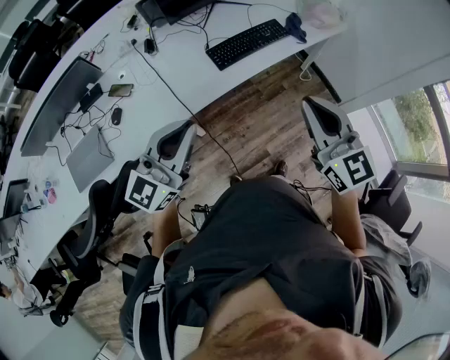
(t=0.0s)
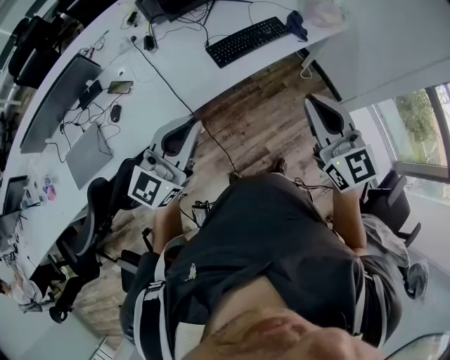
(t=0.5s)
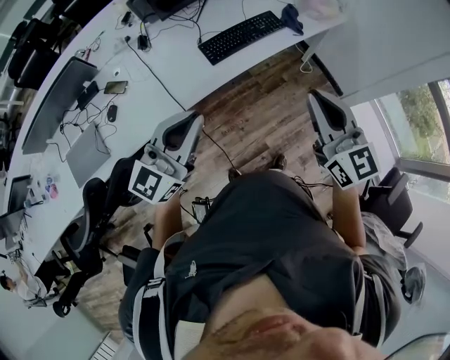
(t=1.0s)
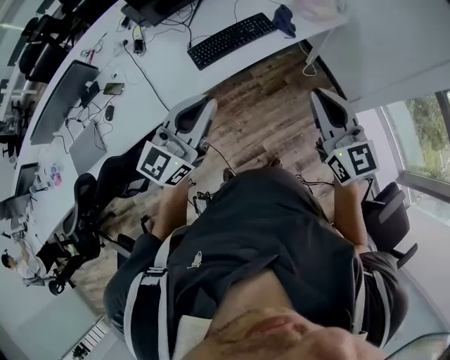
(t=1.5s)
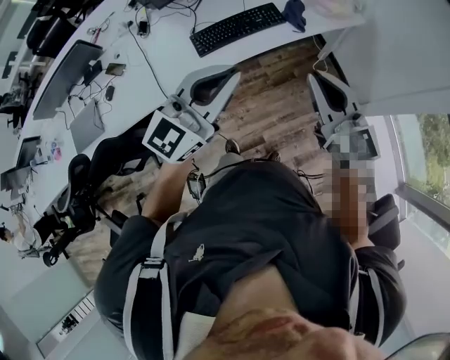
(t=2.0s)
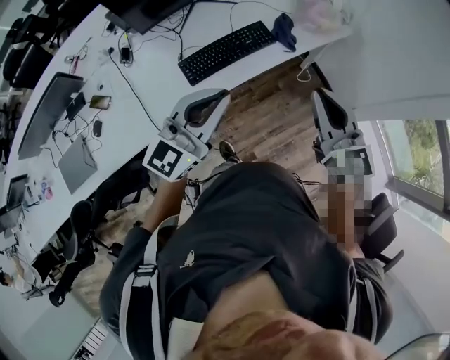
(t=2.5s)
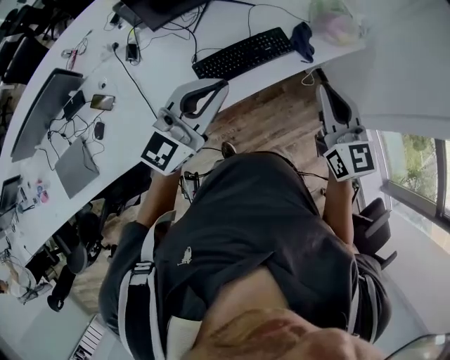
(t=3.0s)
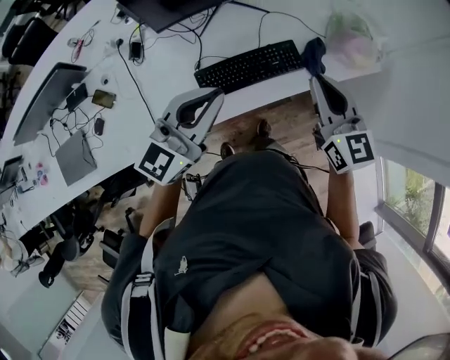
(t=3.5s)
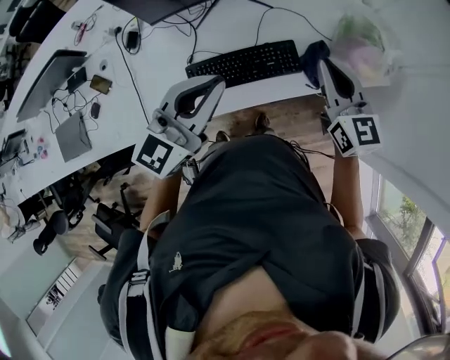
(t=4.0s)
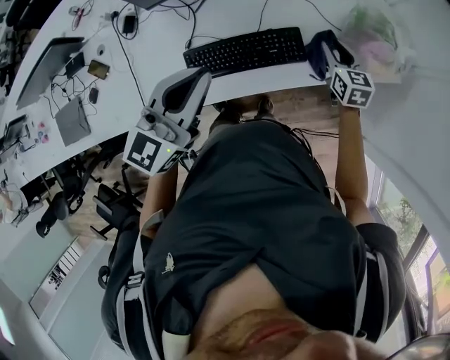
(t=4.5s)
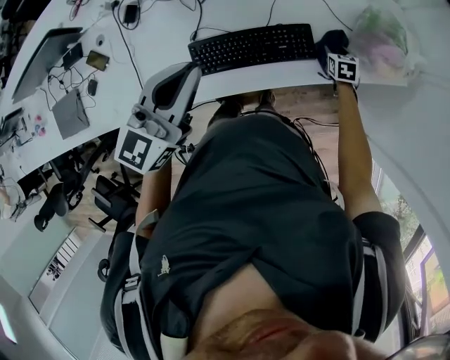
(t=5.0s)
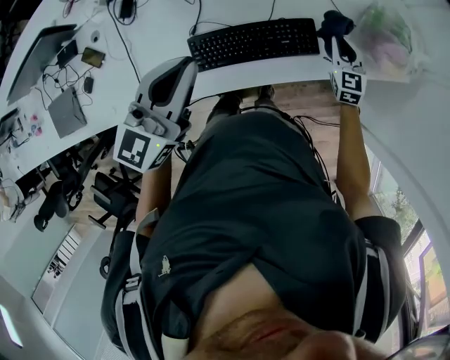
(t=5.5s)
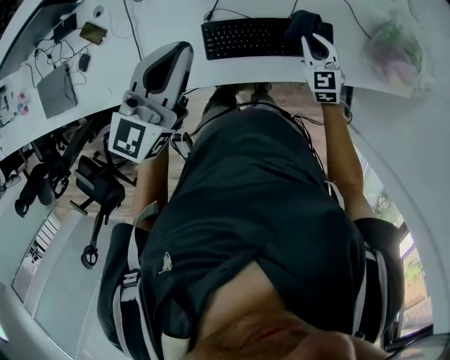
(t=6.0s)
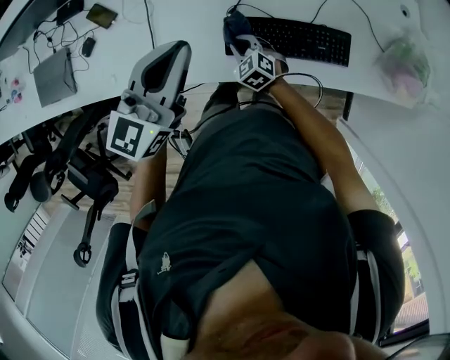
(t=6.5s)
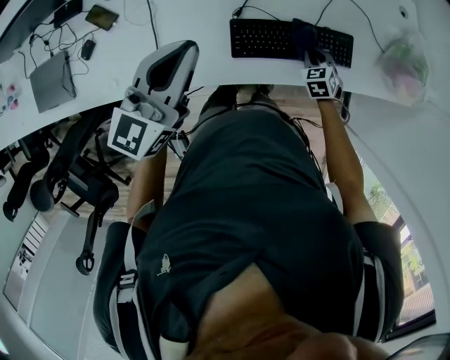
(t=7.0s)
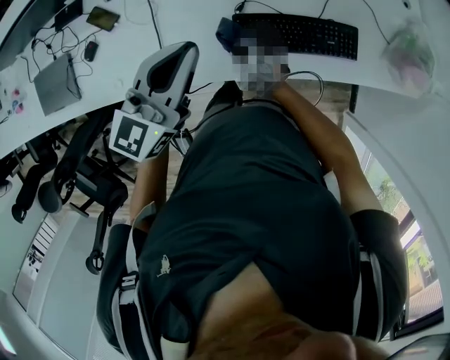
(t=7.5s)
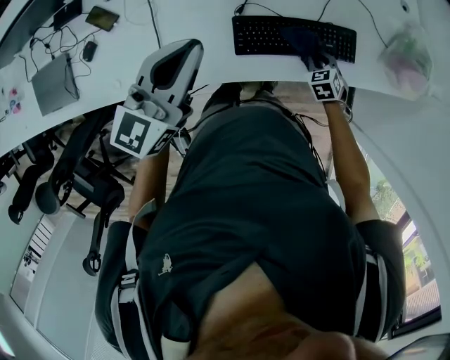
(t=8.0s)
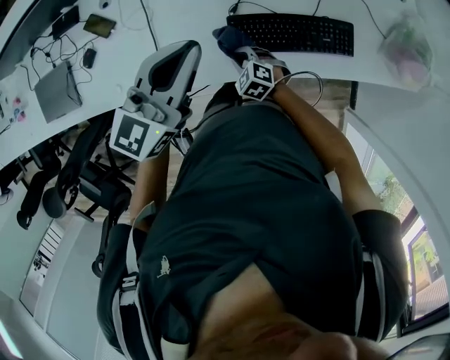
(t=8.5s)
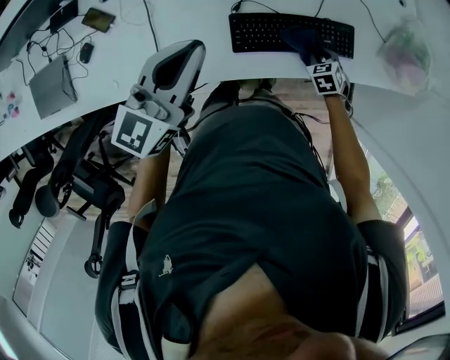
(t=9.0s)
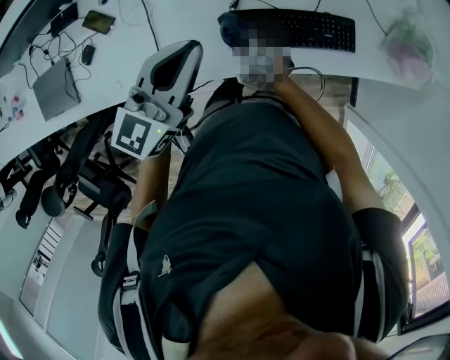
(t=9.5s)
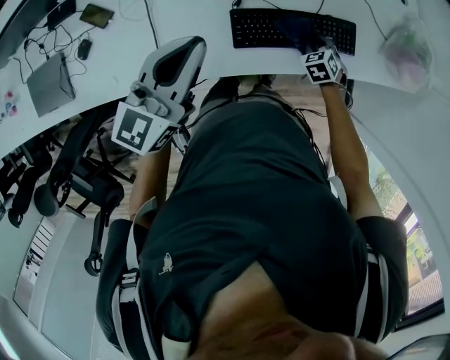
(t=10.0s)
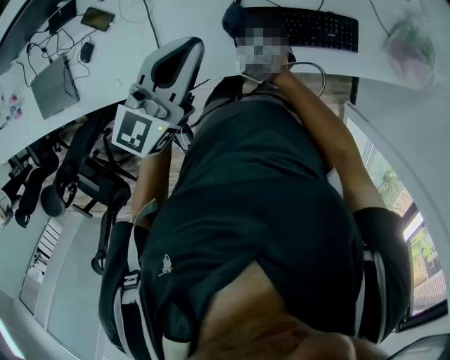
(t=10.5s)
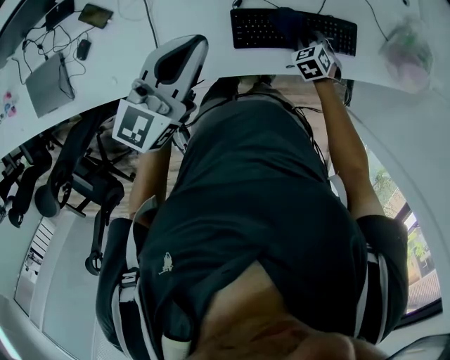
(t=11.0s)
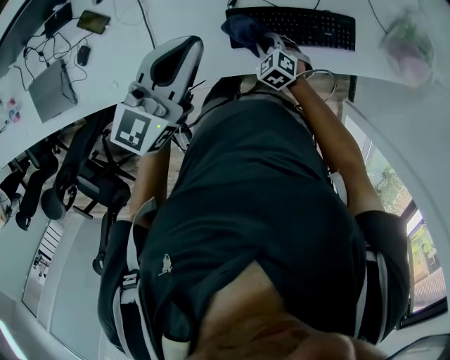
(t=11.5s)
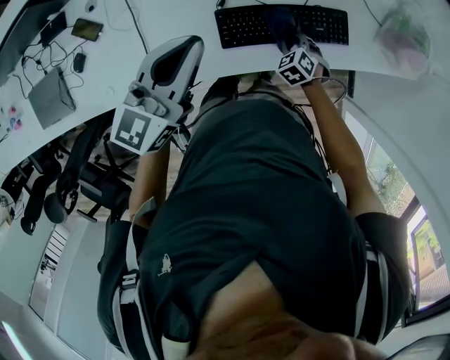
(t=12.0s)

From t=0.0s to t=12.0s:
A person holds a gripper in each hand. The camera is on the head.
From t=0.0s to t=2.0s: Both grippers move to the right and forward, some 30 cm.
From t=2.0s to t=4.0s: Both grippers move forward, some 35 cm.
From t=4.0s to t=6.0s: The right gripper shifts roughly 25 cm downward and to the left, swivels some 30 degrees, and opens and closes again, while the left gripper goes about 15 cm to the left.
From t=6.0s to t=8.0s: The left gripper shifts approximately 10 cm to the left, while the right gripper swings left and right, roughly 30 cm each way, with 3 reversals, and rotates approximately 30 degrees.
From t=10.0s to t=12.0s: The right gripper swings left and right, some 20 cm each way, with 3 reversals.

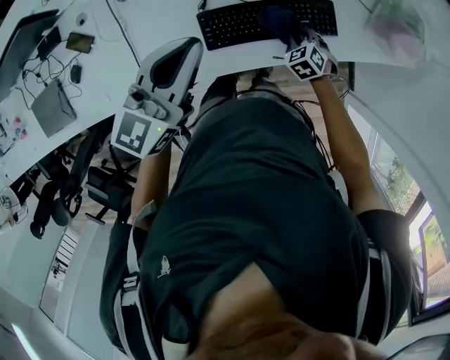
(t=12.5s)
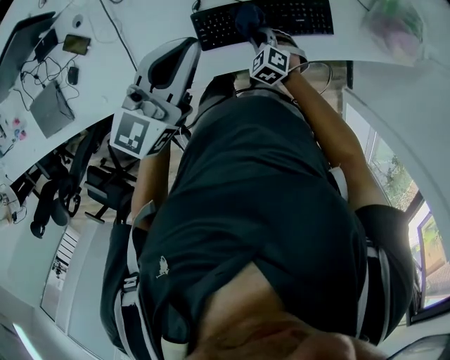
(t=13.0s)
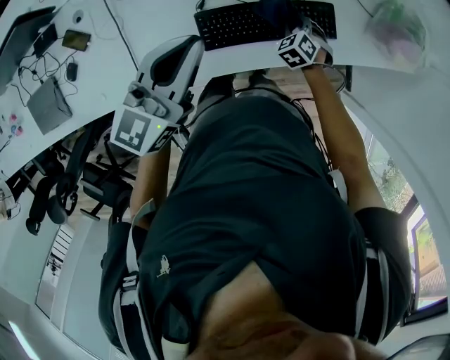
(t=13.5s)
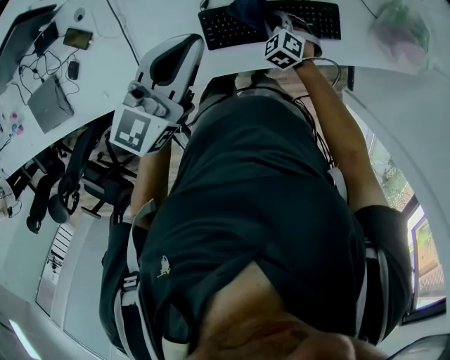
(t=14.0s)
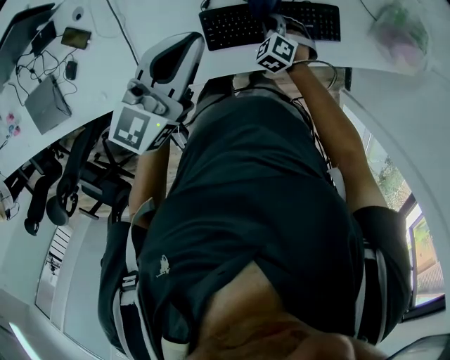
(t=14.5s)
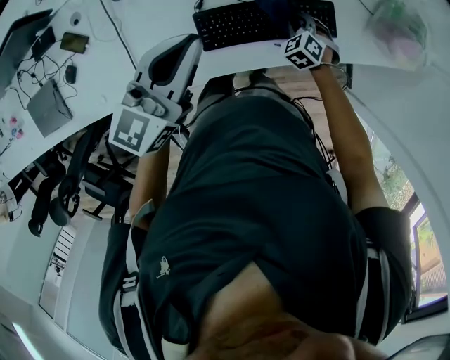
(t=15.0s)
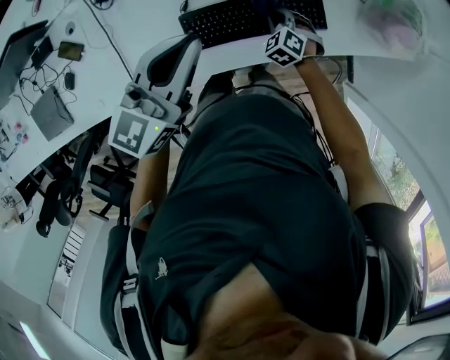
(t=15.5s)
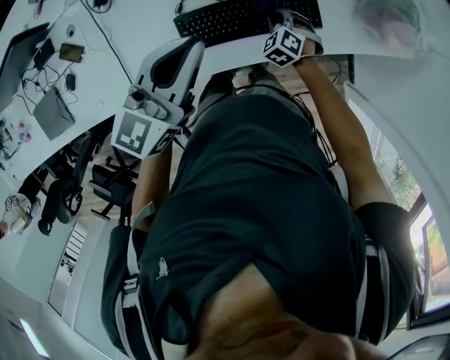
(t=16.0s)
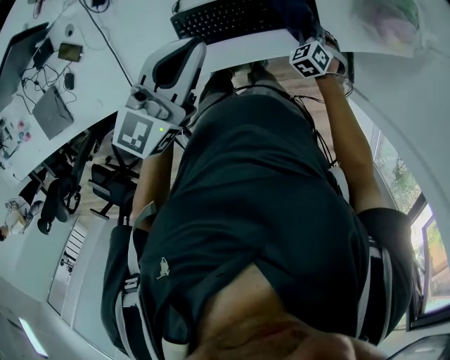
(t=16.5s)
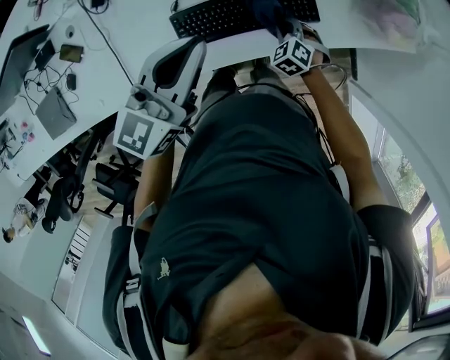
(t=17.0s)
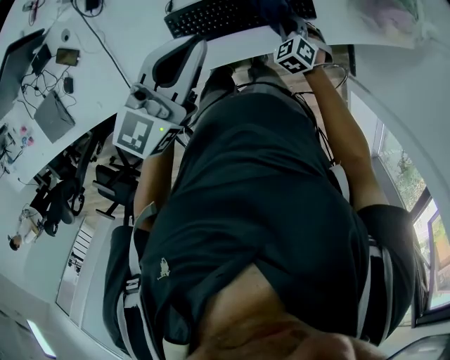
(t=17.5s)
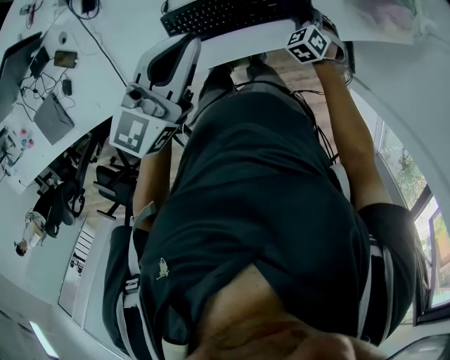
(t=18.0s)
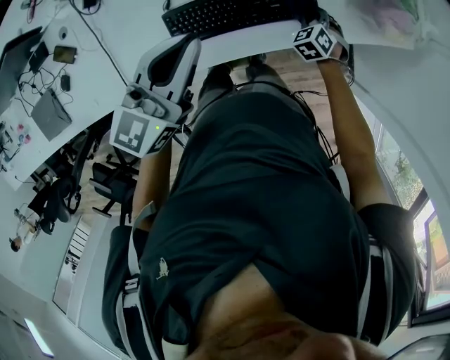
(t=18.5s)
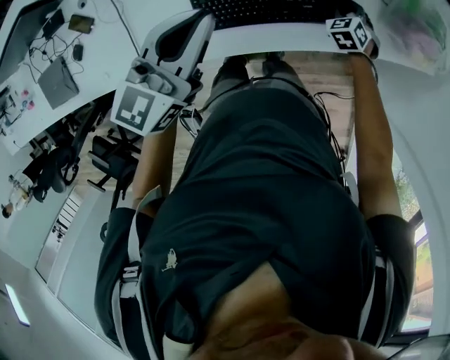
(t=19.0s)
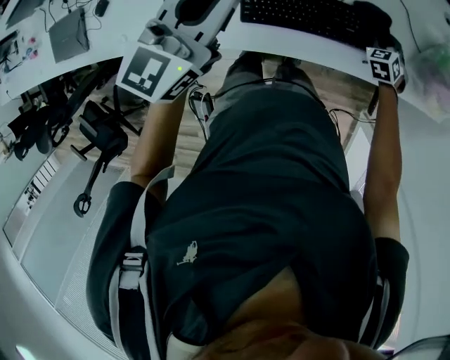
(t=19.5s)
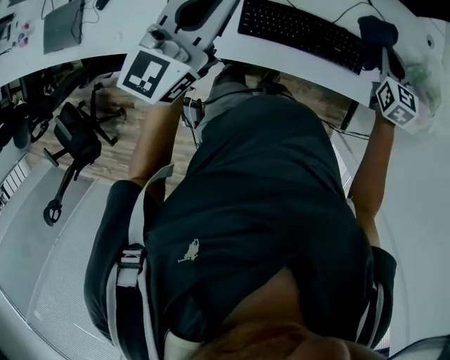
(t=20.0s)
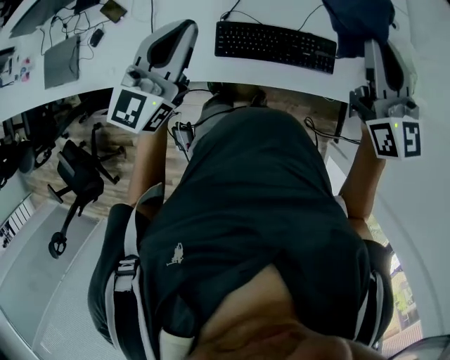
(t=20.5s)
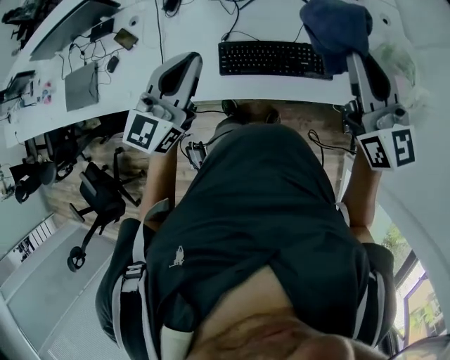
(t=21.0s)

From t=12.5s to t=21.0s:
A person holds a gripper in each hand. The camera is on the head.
From t=12.5s to t=14.5s: The right gripper swings left and right, about 10 cm each way, with 2 reversals.
From t=14.5s to t=16.5s: The right gripper heads to the right, covering about 20 cm. The left gripper travels to the right by approximately 10 cm.
From t=16.5s to t=19.0s: The right gripper heads forward, covering some 10 cm.
From t=19.0s to t=21.0s: The right gripper is displaced upward by some 50 cm, and points its fingers some 60 degrees further upward, while the left gripper changes place by approximately 15 cm.

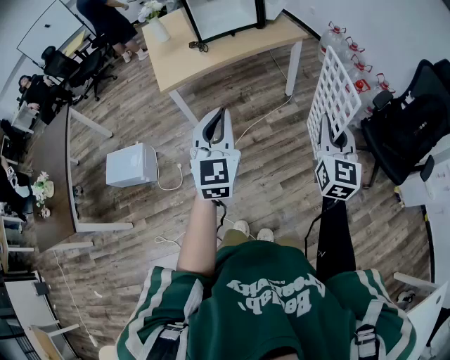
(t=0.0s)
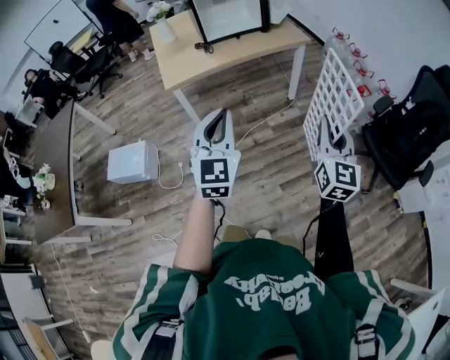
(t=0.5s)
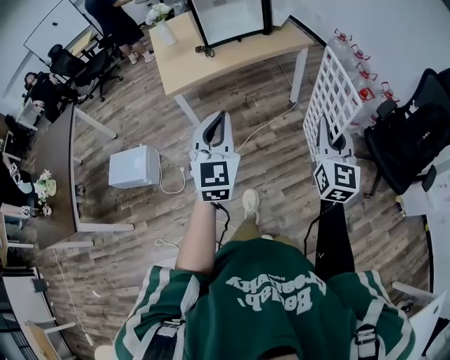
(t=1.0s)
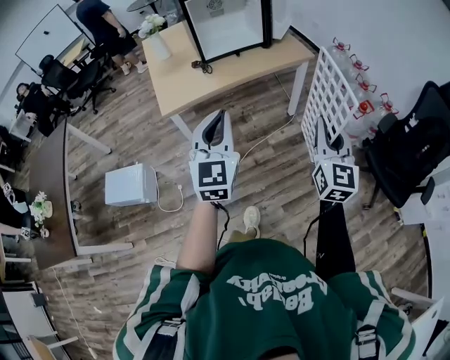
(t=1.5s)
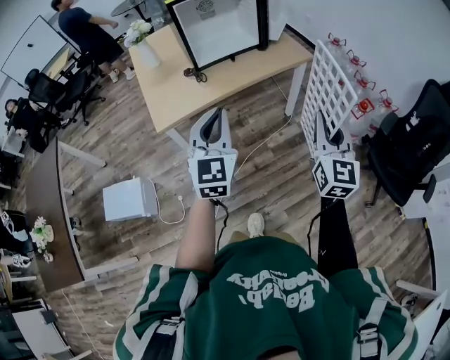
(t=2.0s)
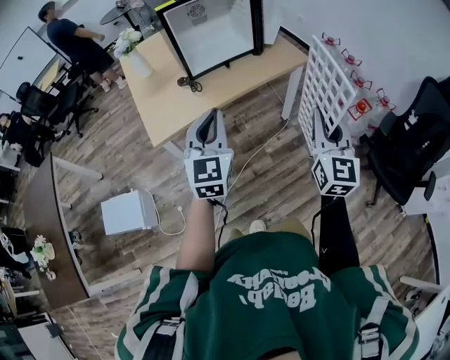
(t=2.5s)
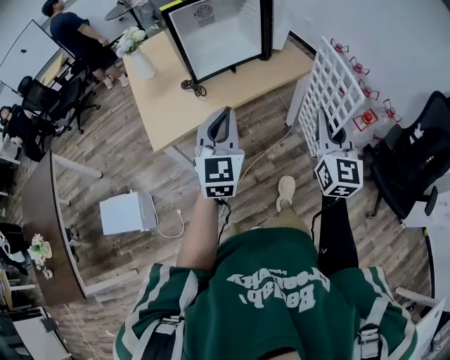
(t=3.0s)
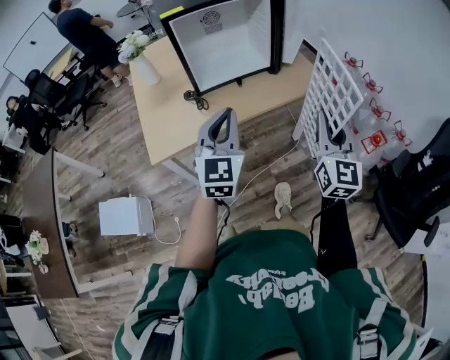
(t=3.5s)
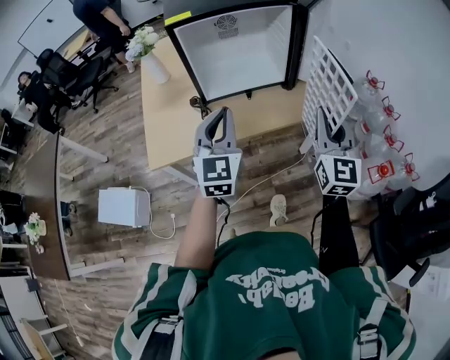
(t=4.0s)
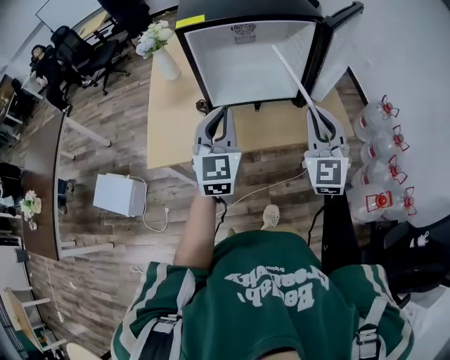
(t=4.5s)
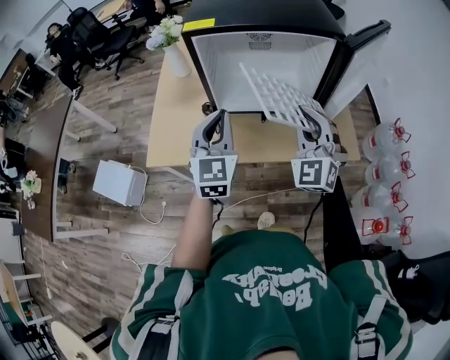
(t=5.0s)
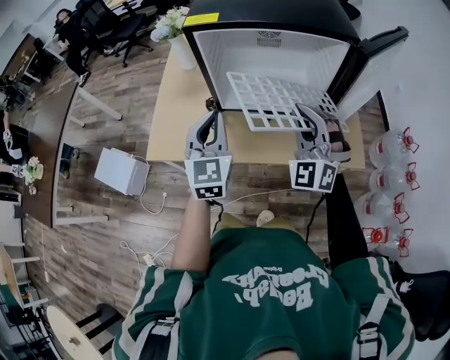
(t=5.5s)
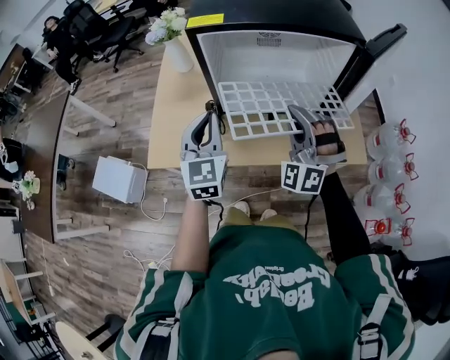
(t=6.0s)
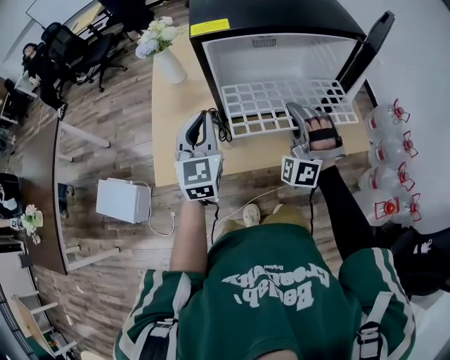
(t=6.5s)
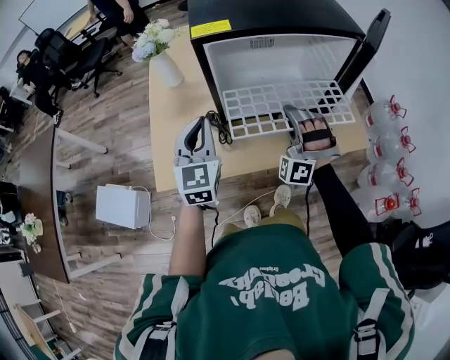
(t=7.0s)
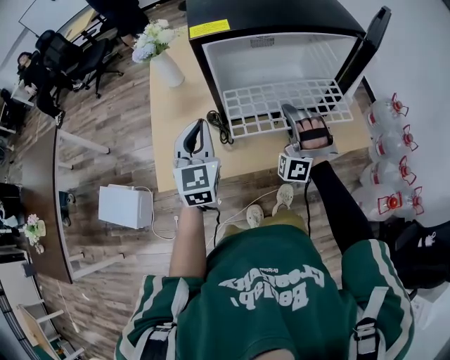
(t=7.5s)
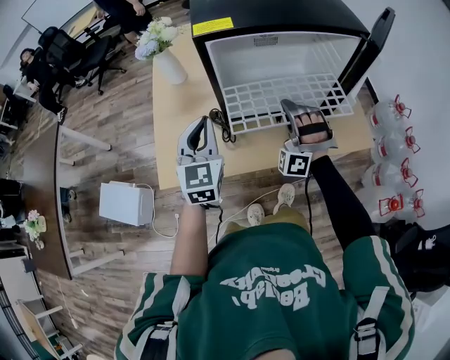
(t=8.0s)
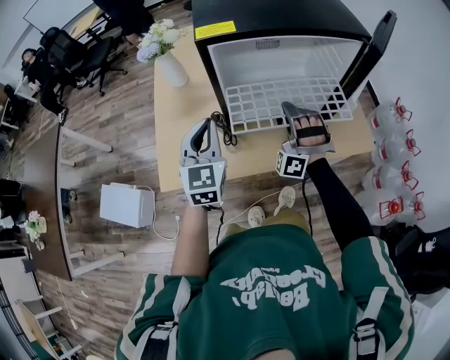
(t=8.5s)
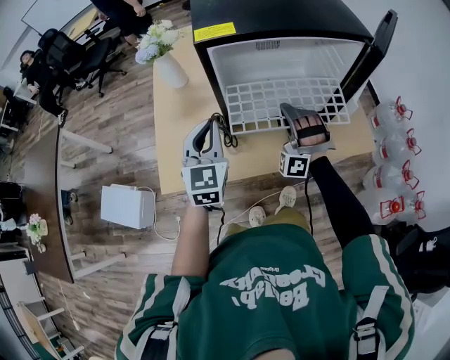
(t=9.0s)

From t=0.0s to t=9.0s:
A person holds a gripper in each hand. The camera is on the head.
From t=0.0s to t=2.0s: Both grippers travel together forward, about 20 cm.
From t=2.0s to t=4.5s: Both grippers move forward, approximately 40 cm. The right gripper changes its angle by some 30 degrees.
From t=4.5s to t=7.0s: The left gripper travels to the left, forward and downward by approximately 20 cm. The right gripper heads forward, to the left and downward, covering roughly 20 cm, and rotates around the line of its fingers by some 60 degrees, counterclockwise from behind.
From t=7.0s to t=9.0s: The right gripper shifts by some 5 cm.
